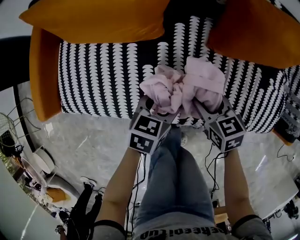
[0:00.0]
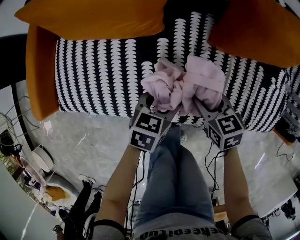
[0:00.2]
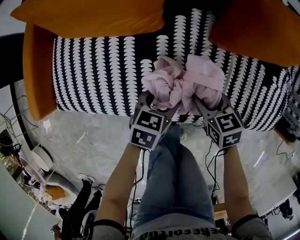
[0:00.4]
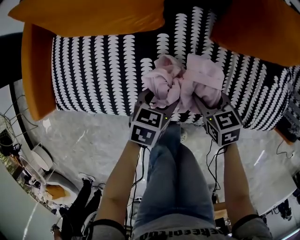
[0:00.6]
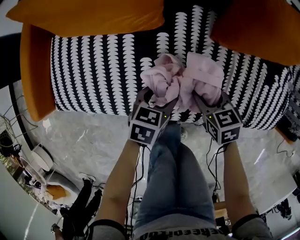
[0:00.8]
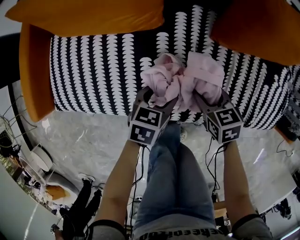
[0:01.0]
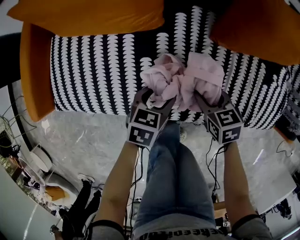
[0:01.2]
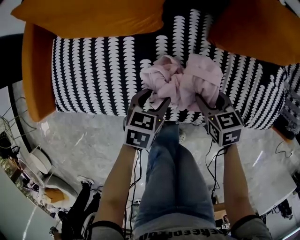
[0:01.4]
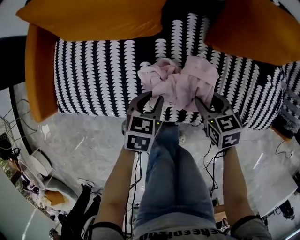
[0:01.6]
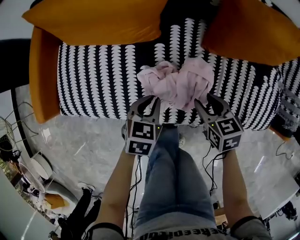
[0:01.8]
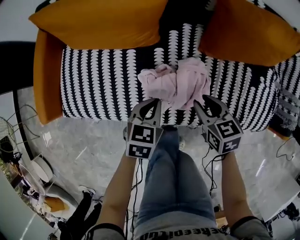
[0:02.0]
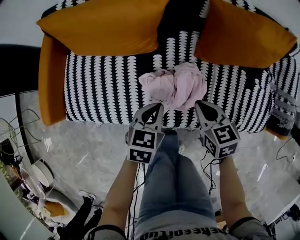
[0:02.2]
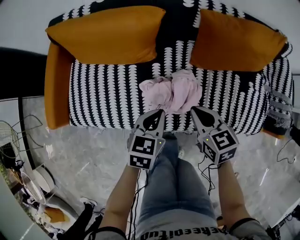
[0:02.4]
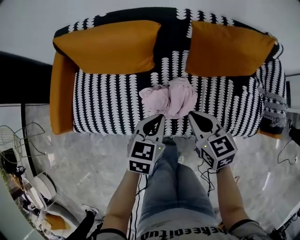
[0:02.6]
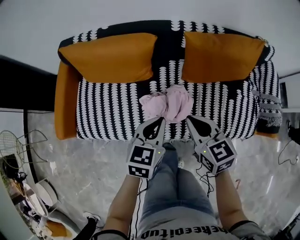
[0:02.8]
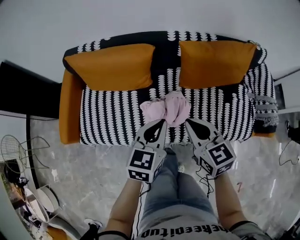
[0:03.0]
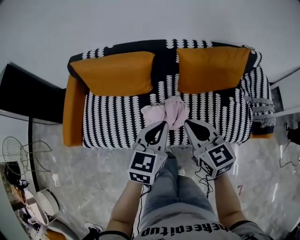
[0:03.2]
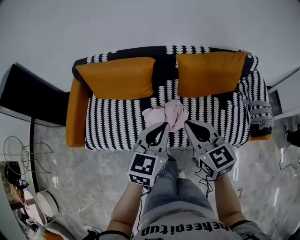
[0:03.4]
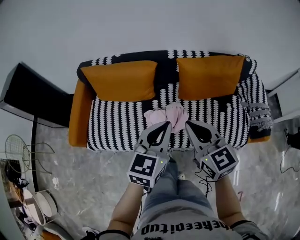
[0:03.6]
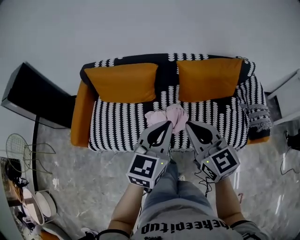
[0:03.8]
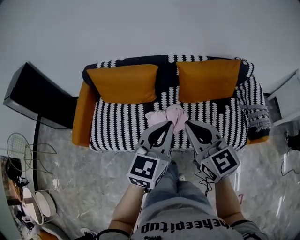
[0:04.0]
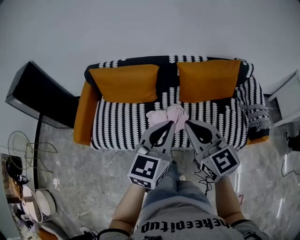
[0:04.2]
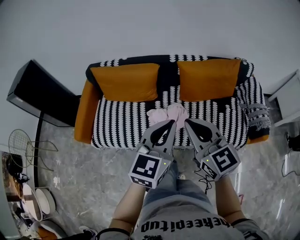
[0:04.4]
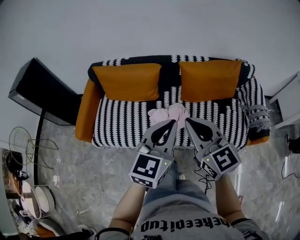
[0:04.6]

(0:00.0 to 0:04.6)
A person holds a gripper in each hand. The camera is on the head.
0:00.0 - 0:01.6: The left gripper ends up roughly 5 cm from where it was, and closes its fingers.
0:01.6 - 0:03.0: Both grippers move upward, approximately 35 cm. The left gripper swivels some 30 degrees, and closes up; the right gripper changes its angle by approximately 30 degrees, and closes up.
0:03.0 - 0:04.6: Both grippers travel together upward and backward, about 25 cm. The right gripper turns by some 20 degrees.

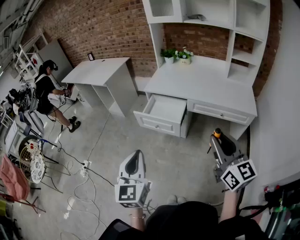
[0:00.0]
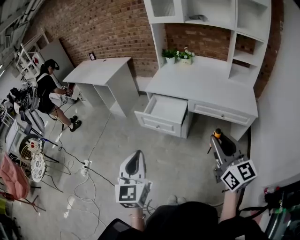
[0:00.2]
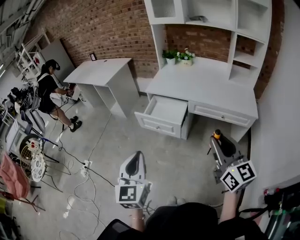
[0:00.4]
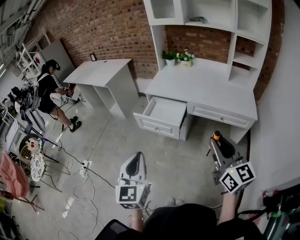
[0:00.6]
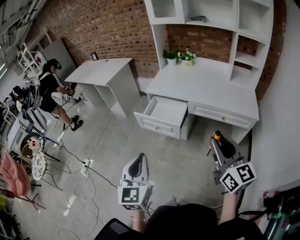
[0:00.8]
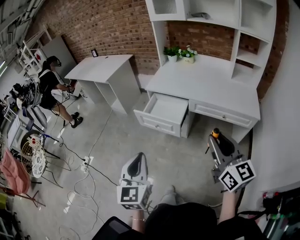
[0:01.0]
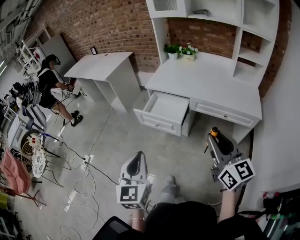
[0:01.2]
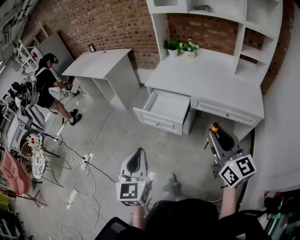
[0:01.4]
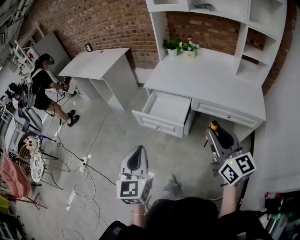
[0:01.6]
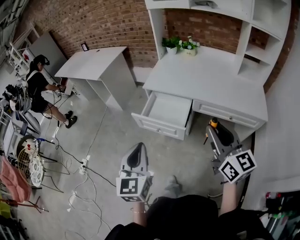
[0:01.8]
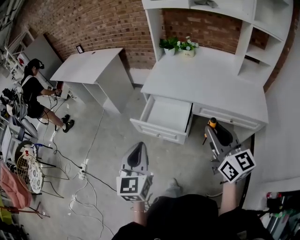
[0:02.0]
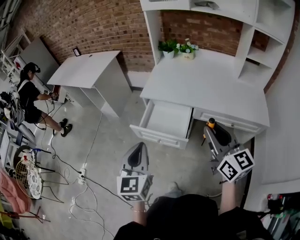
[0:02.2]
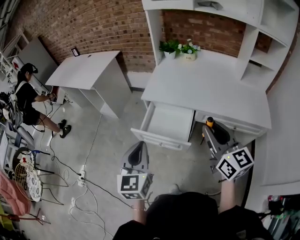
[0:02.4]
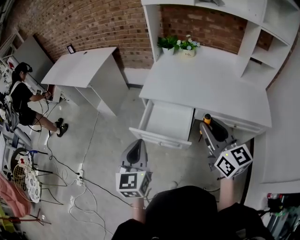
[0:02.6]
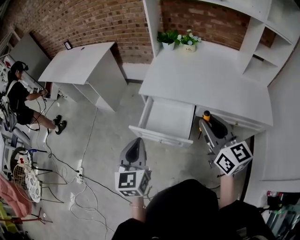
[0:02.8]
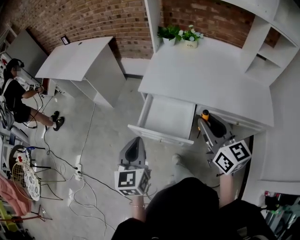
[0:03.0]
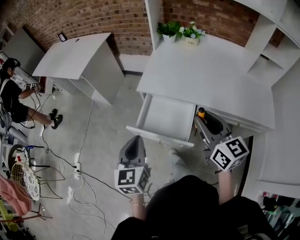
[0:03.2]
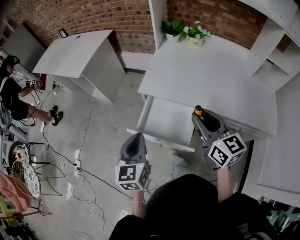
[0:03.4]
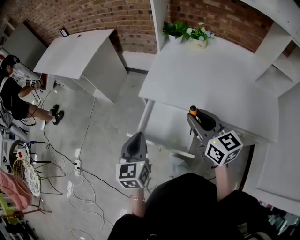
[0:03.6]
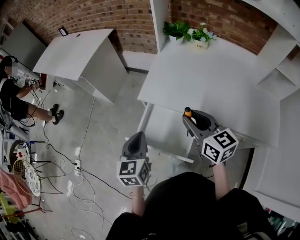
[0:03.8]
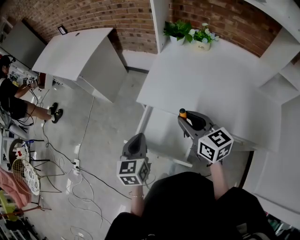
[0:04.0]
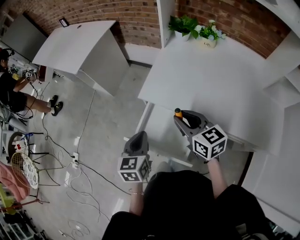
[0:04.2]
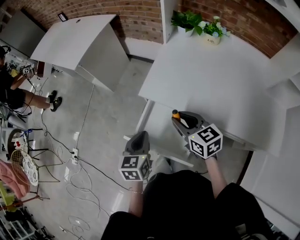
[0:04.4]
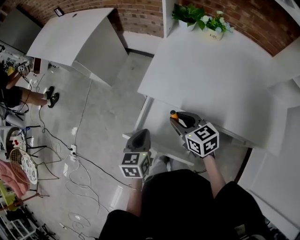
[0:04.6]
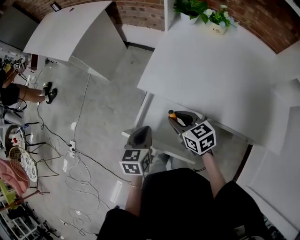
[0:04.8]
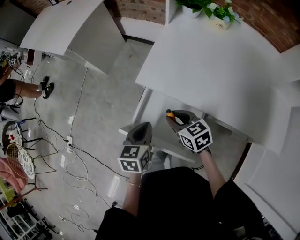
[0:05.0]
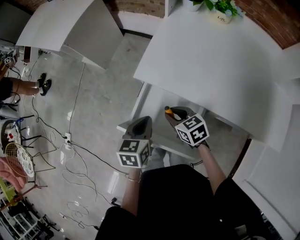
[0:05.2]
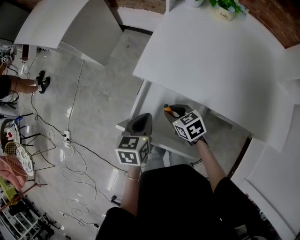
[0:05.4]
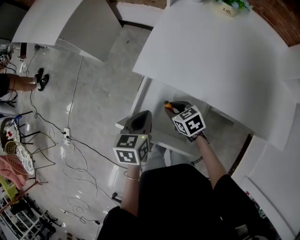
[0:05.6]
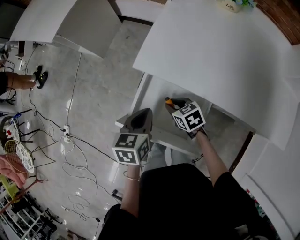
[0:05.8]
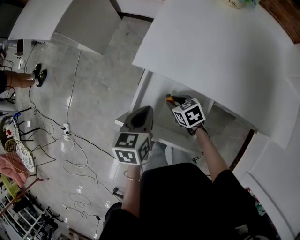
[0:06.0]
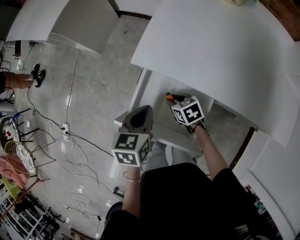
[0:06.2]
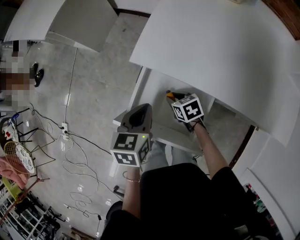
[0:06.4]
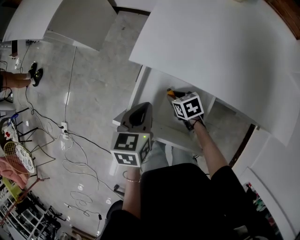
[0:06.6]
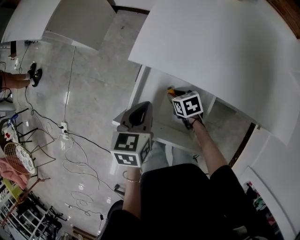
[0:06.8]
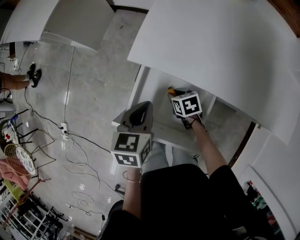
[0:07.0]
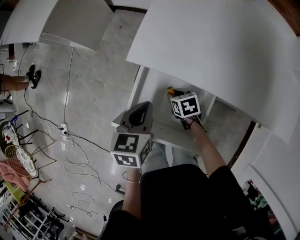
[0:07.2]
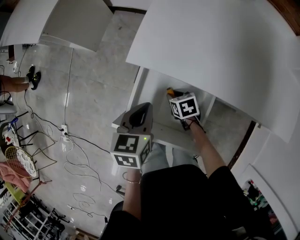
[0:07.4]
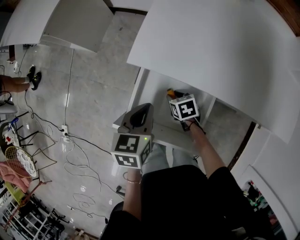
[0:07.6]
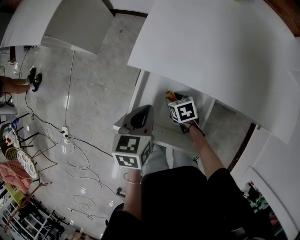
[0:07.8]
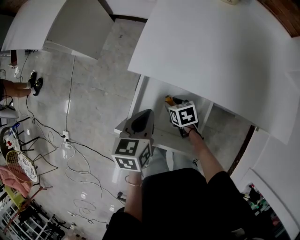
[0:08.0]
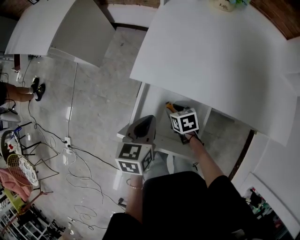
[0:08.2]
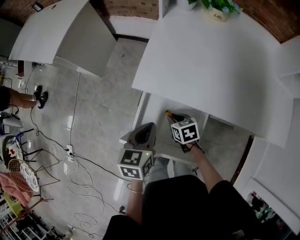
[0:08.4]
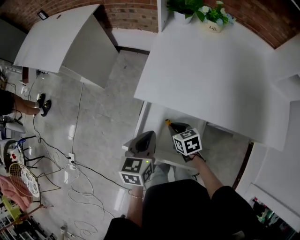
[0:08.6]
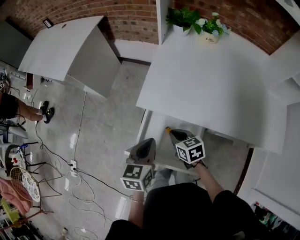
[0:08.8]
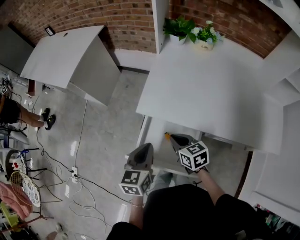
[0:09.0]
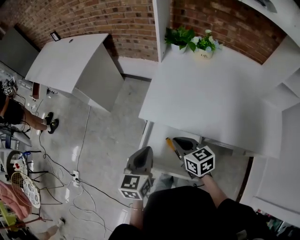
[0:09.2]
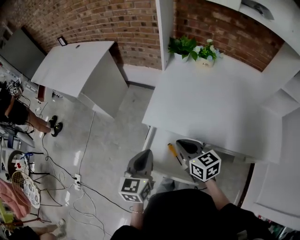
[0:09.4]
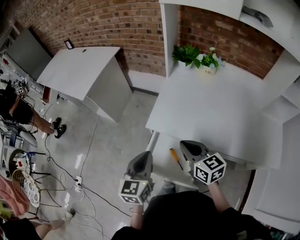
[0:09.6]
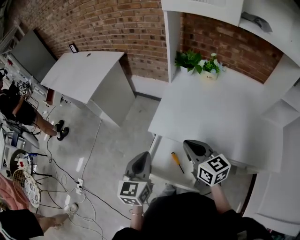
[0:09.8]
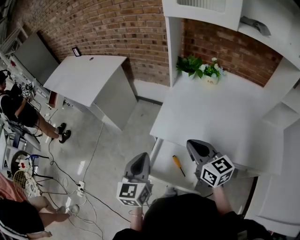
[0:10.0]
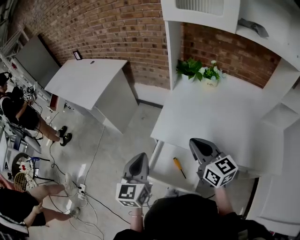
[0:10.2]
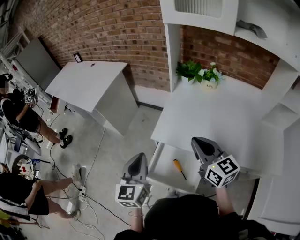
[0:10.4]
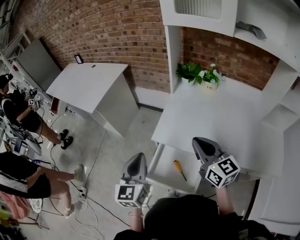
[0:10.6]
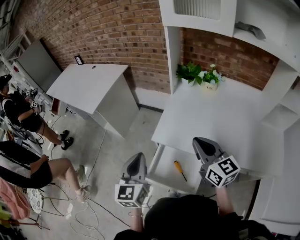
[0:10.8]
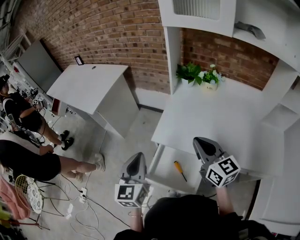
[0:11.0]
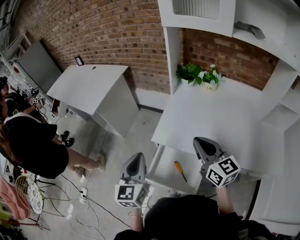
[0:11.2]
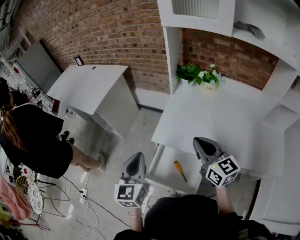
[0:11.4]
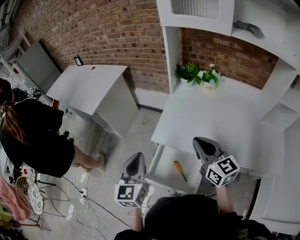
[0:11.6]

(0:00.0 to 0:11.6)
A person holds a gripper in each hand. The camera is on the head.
0:00.0 - 0:01.4: Both grippers travel together forward, approximately 5 cm.
0:01.4 - 0:02.8: Both grippers travel together forward, about 30 cm.
0:02.8 - 0:04.4: Both grippers travel together forward and downward, about 25 cm. The right gripper swivels some 30 degrees; the left gripper turns by about 20 degrees.
0:04.4 - 0:05.8: The left gripper shifts approximately 10 cm downward. The right gripper goes about 25 cm downward, and rotates approximately 30 degrees.
0:05.8 - 0:07.2: The right gripper heads downward, covering about 10 cm.
0:07.2 - 0:08.8: The right gripper is displaced upward by approximately 15 cm, while the left gripper goes about 5 cm upward.
0:08.8 - 0:10.2: The right gripper is displaced upward by approximately 30 cm, and angles its fingers upward, by approximately 30 degrees. The left gripper moves upward, approximately 20 cm, and changes its angle by approximately 30 degrees.
0:10.2 - 0:11.6: The grippers stay close to where they were, moving slightly.

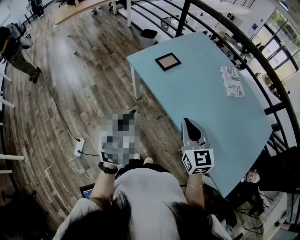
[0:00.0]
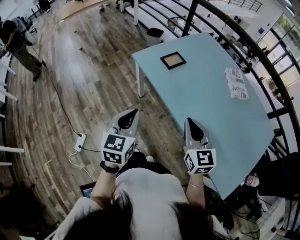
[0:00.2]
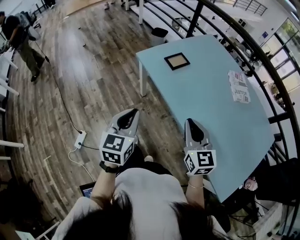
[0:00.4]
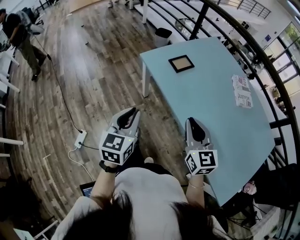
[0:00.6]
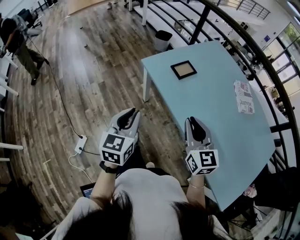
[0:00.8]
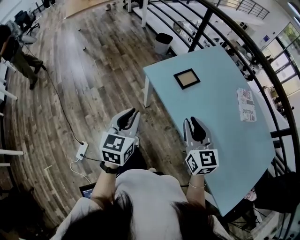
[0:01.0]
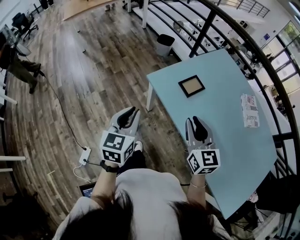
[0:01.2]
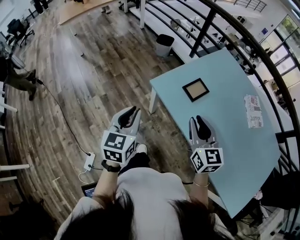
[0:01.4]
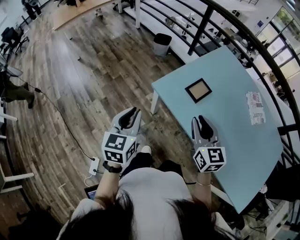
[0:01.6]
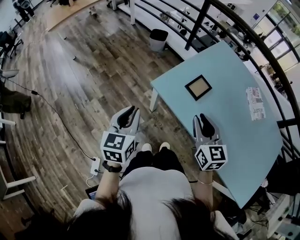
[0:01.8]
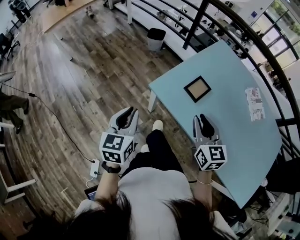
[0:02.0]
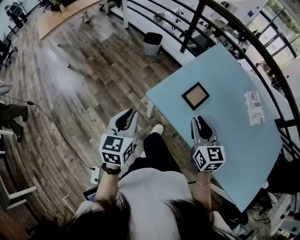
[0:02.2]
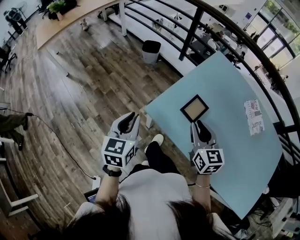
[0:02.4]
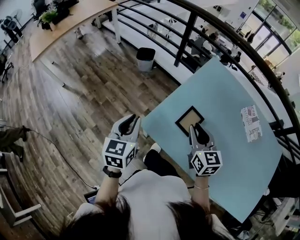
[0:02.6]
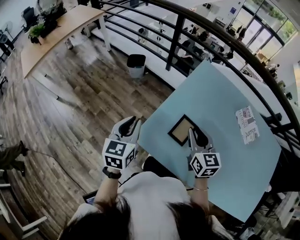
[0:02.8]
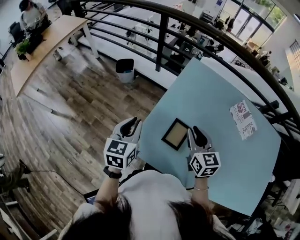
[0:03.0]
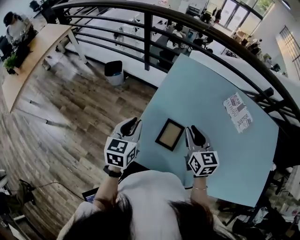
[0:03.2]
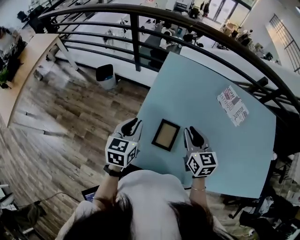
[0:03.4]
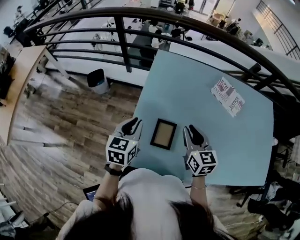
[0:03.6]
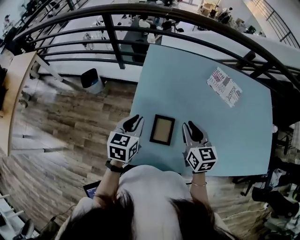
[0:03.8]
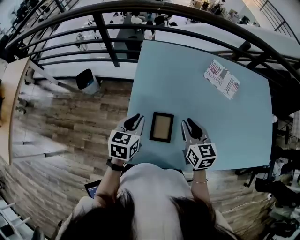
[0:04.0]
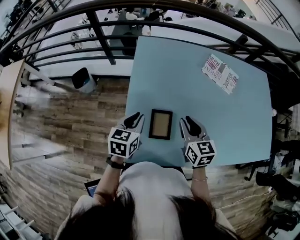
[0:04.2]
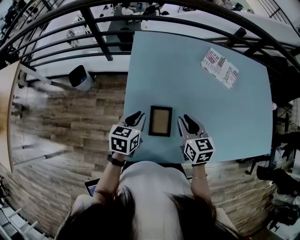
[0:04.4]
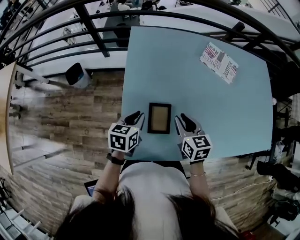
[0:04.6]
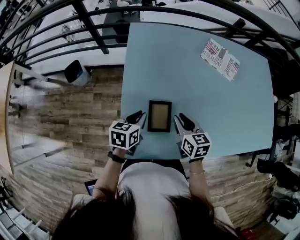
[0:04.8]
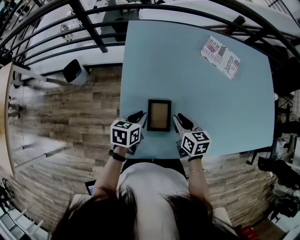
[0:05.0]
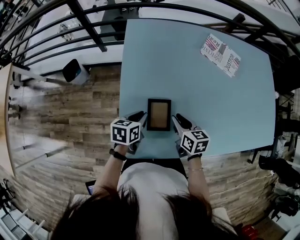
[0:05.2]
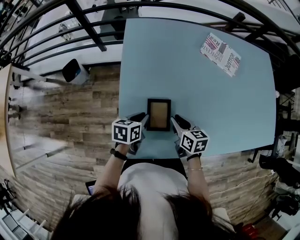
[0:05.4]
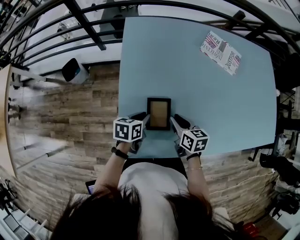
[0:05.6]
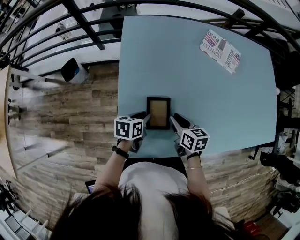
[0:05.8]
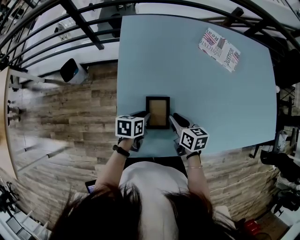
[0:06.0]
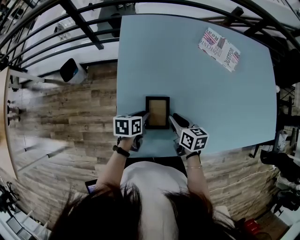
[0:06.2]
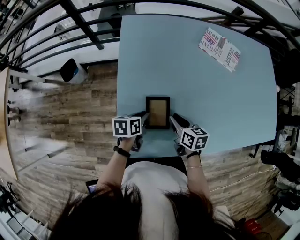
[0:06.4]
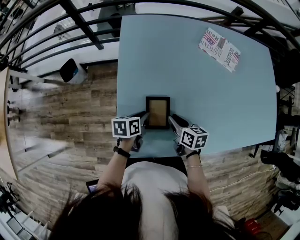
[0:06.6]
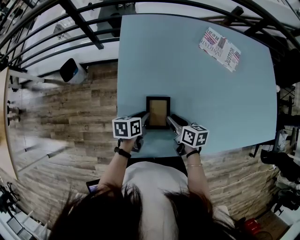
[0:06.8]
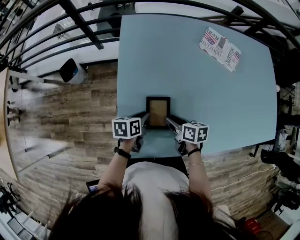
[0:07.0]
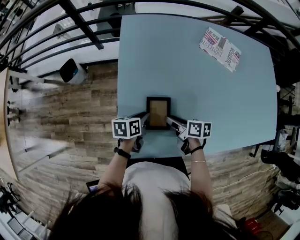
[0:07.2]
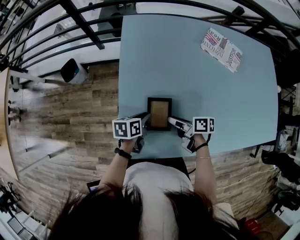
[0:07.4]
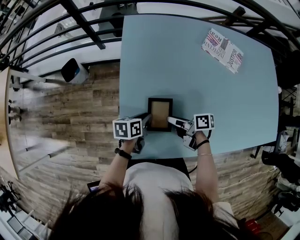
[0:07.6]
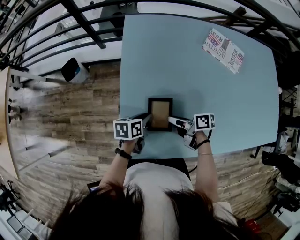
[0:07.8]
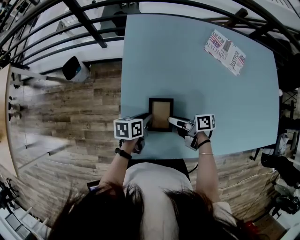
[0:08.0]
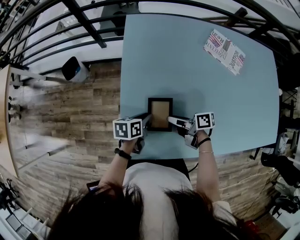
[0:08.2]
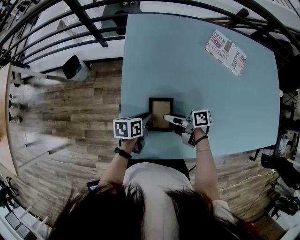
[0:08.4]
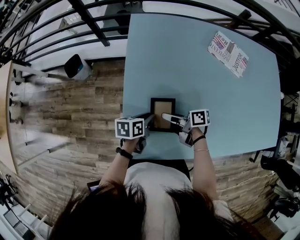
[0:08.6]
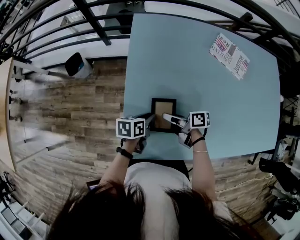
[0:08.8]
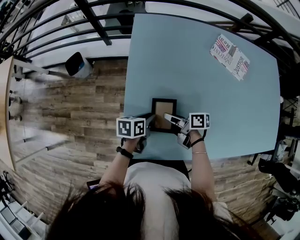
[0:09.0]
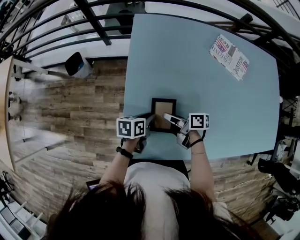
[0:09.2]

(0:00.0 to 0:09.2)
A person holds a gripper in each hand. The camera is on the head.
0:00.0 - 0:01.6: Both grippers move forward and to the left, about 30 cm.
0:01.6 - 0:03.0: Both grippers move forward, roughly 30 cm. The right gripper turns by some 20 degrees. The left gripper rotates approximately 20 degrees.
0:03.0 - 0:04.6: The right gripper travels downward by some 10 cm, and swivels some 30 degrees, while the left gripper shifts by about 20 cm, and turns by approximately 40 degrees.
0:04.6 - 0:06.2: The two grippers go approximately 10 cm downward. The right gripper rotates about 20 degrees; the left gripper rotates some 20 degrees.
0:06.2 - 0:07.6: The right gripper changes its angle by approximately 40 degrees.
0:07.6 - 0:09.2: The right gripper closes.
